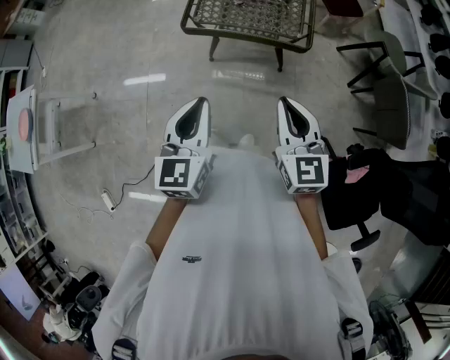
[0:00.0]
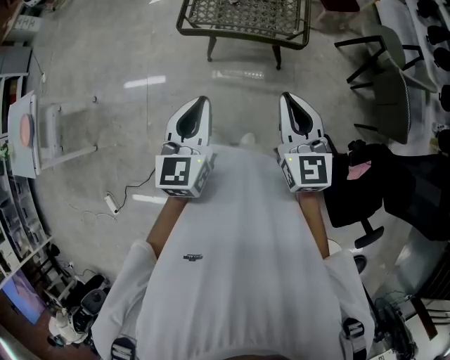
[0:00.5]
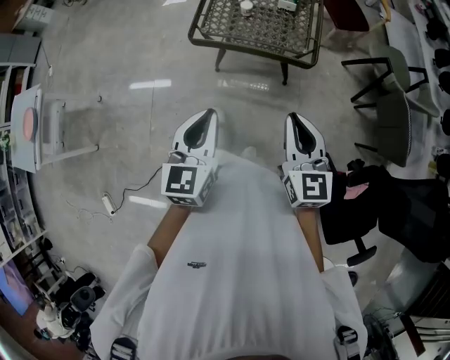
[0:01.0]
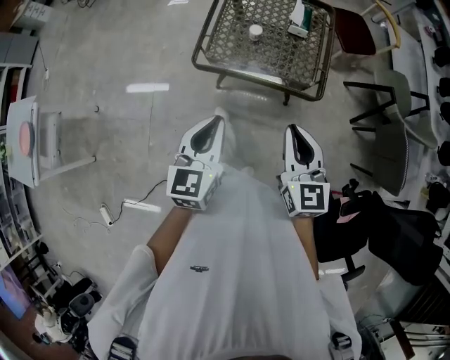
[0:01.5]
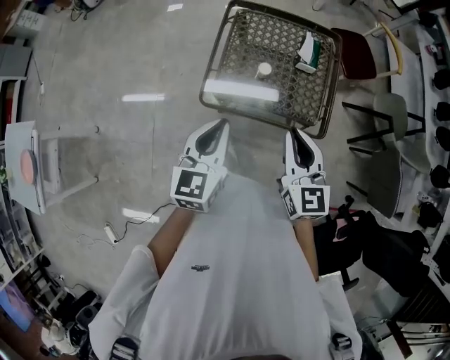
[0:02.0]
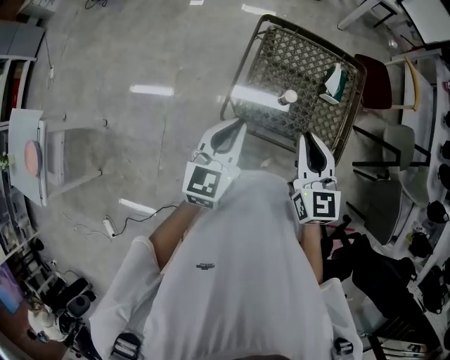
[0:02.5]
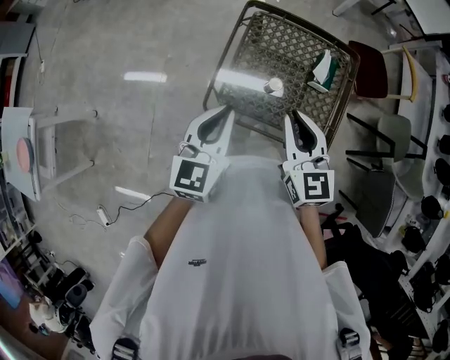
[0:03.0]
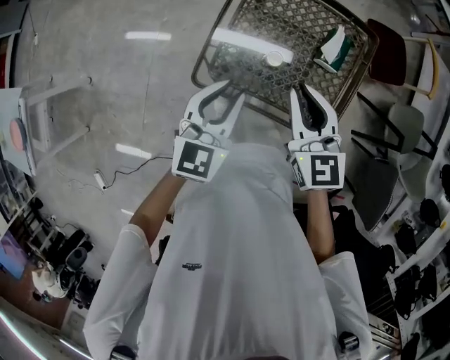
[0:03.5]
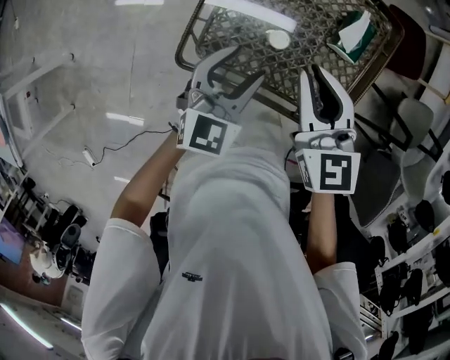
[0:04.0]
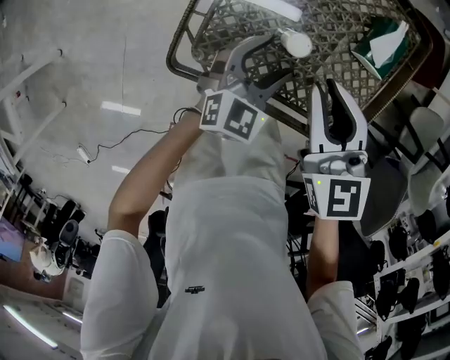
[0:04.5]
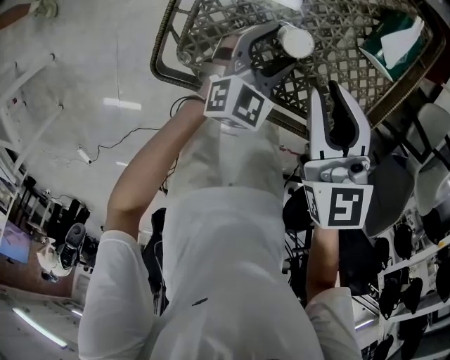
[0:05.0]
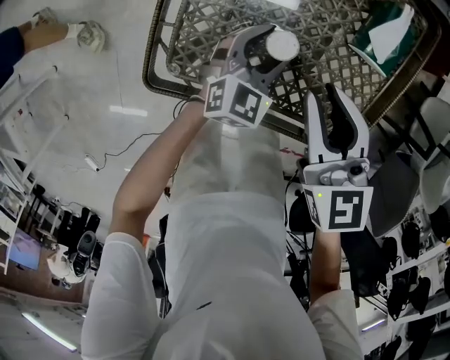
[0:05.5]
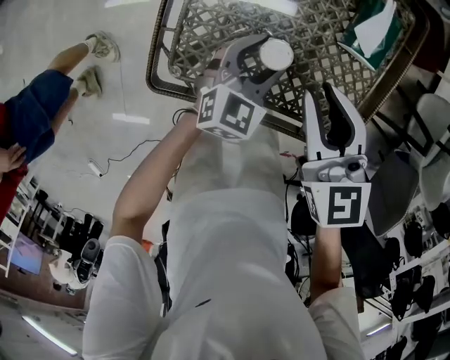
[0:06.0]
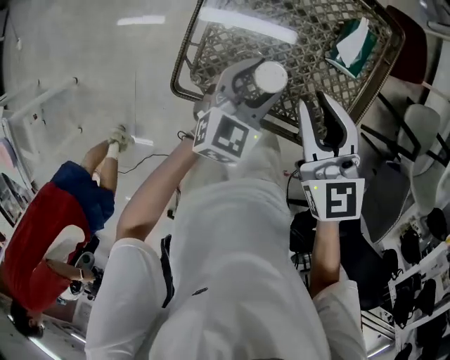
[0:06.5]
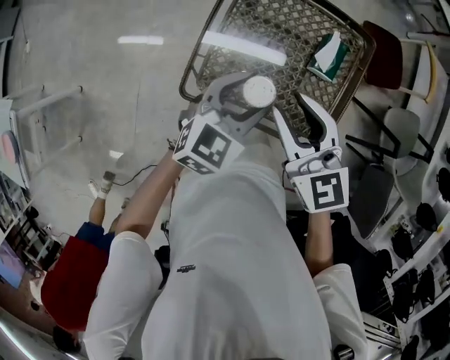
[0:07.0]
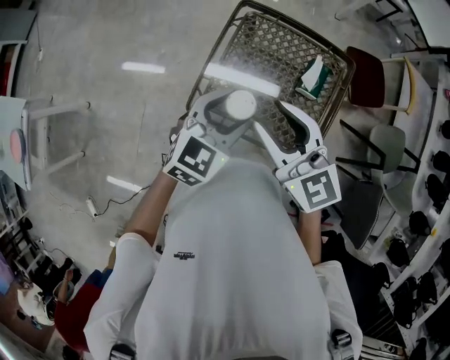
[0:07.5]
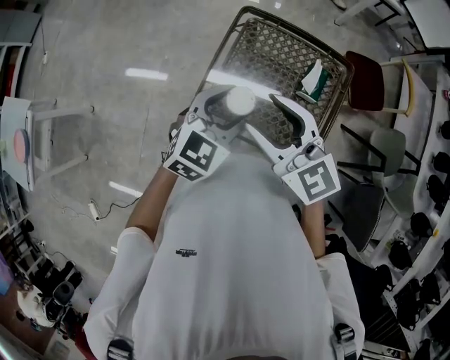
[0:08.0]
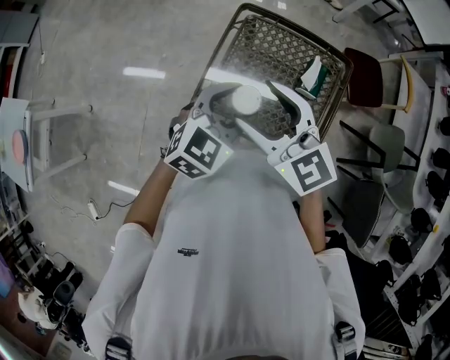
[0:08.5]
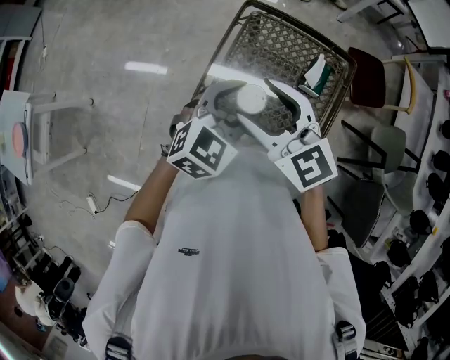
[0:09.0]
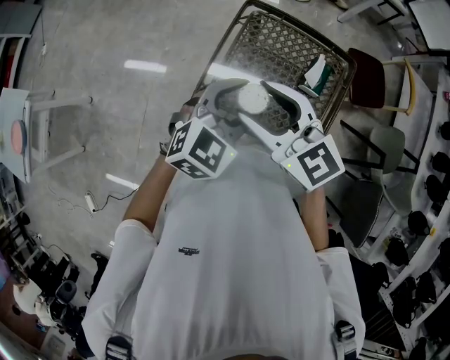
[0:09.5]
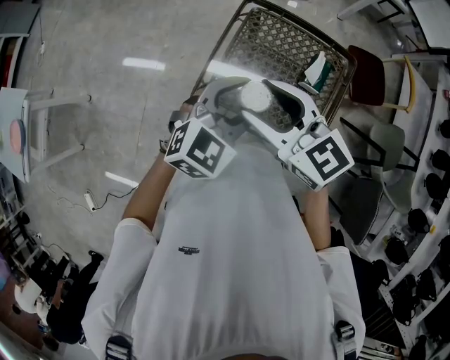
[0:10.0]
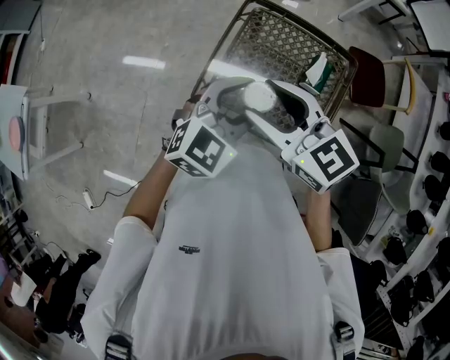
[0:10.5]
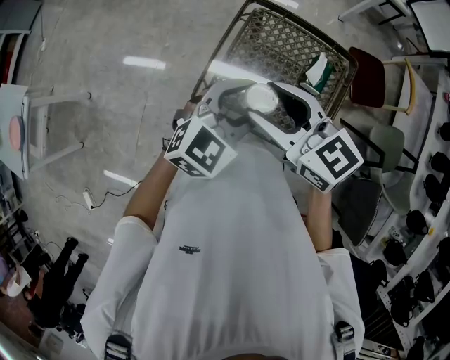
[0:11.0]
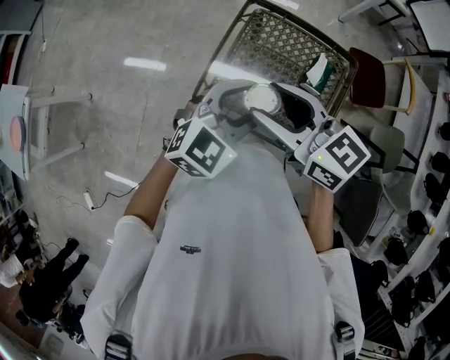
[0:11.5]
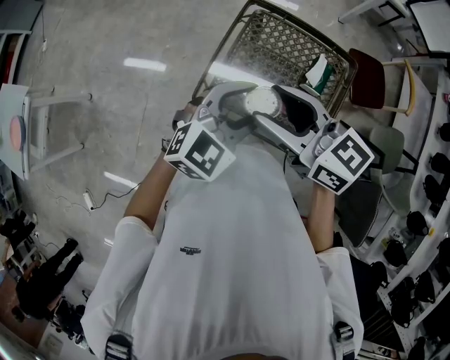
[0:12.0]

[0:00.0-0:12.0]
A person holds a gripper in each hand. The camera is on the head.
0:00.0 to 0:02.0: The grippers both shift forward by some 35 cm.
0:02.0 to 0:04.0: The right gripper travels forward and downward by approximately 25 cm. Meanwhile the left gripper shifts roughly 30 cm forward, downward and to the right, and opens.
0:04.0 to 0:06.0: The left gripper is displaced downward and to the right by about 20 cm. Meanwhile the right gripper heads downward, covering roughly 10 cm.
0:06.0 to 0:08.0: The two grippers go approximately 30 cm upward. The right gripper rotates about 30 degrees, and opens up.
0:08.0 to 0:10.0: The grippers move only a little.
0:10.0 to 0:12.0: The grippers move only a little.

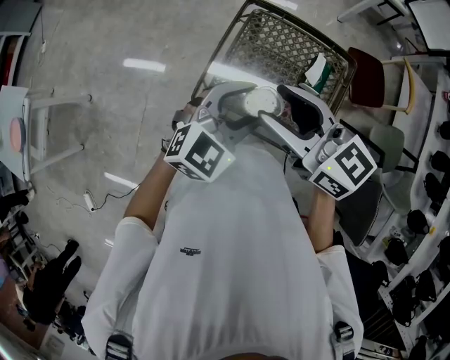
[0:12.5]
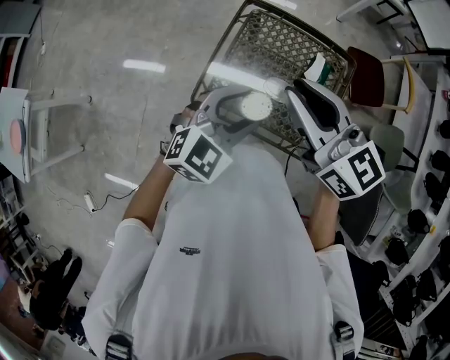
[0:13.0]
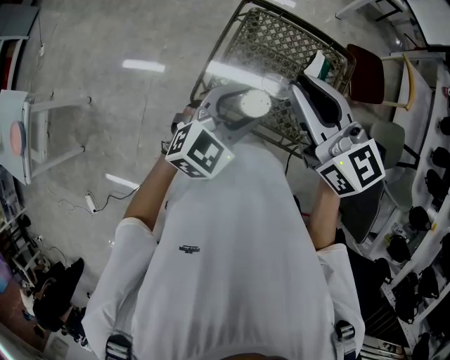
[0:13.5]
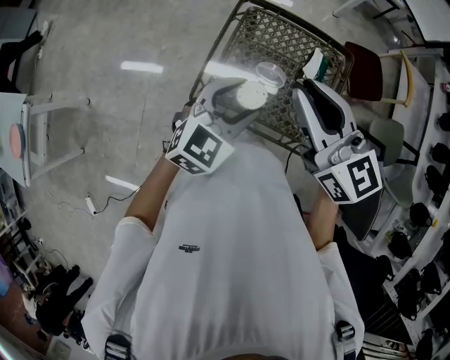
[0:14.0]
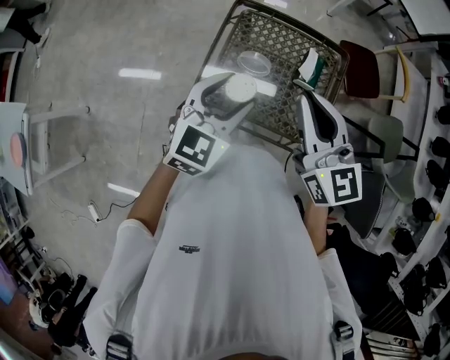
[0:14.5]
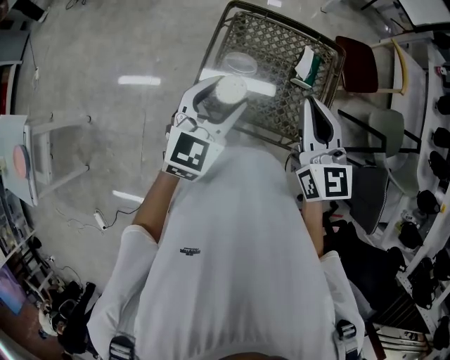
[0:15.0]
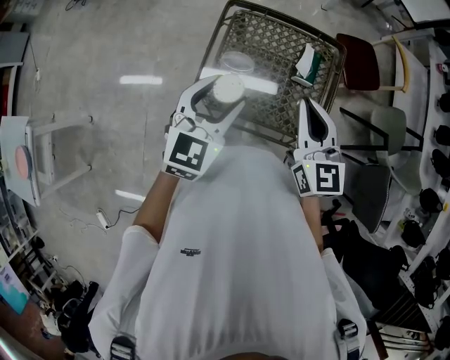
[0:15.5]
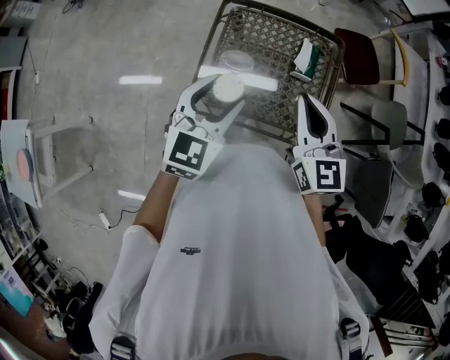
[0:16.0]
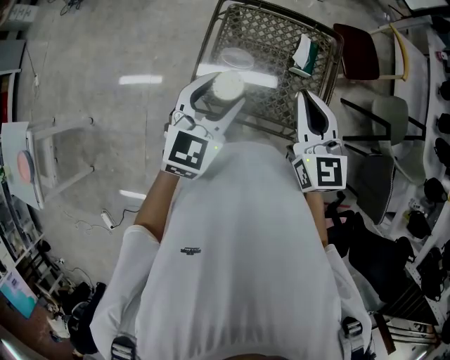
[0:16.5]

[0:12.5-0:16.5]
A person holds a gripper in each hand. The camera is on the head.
0:12.5 to 0:14.5: The right gripper moves to the right, roughly 10 cm, turns by roughly 30 degrees, and closes its fingers.
0:14.5 to 0:16.5: The right gripper is displaced downward by approximately 5 cm.

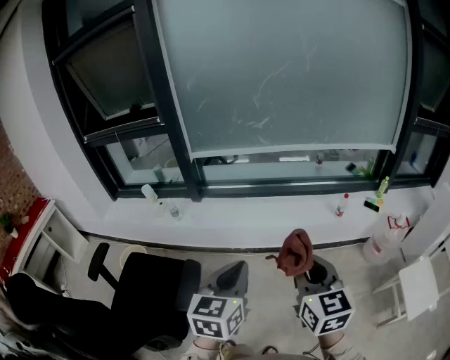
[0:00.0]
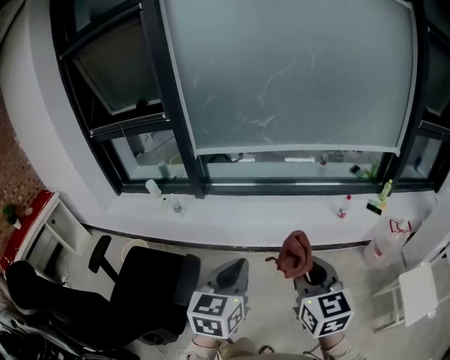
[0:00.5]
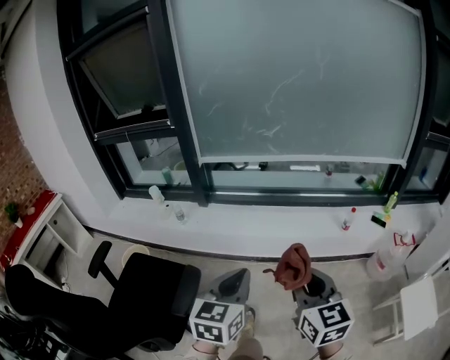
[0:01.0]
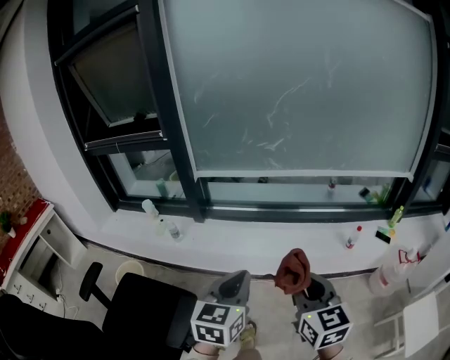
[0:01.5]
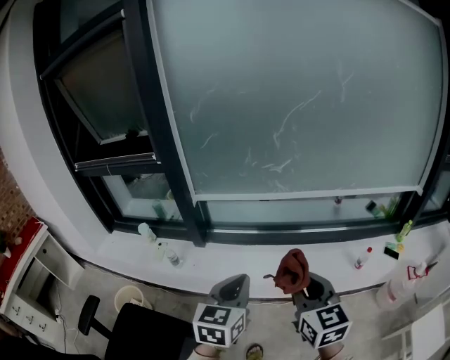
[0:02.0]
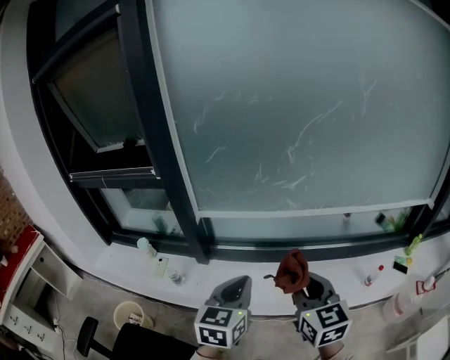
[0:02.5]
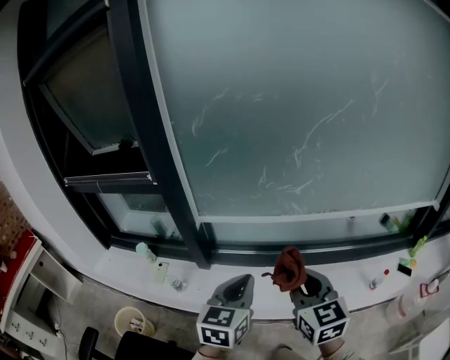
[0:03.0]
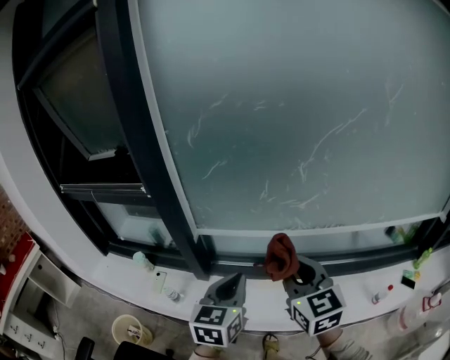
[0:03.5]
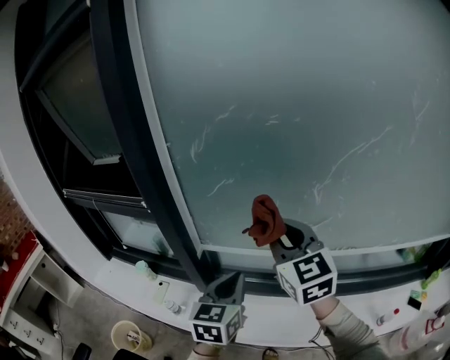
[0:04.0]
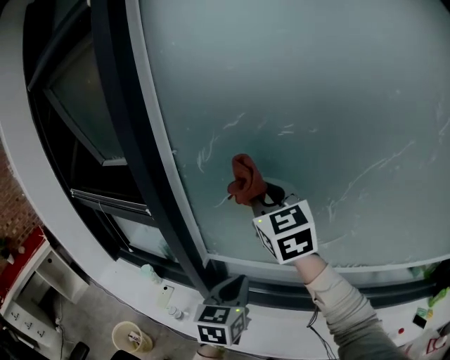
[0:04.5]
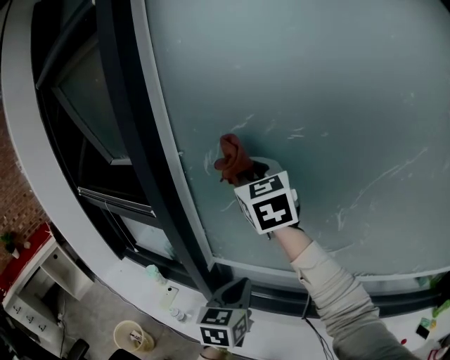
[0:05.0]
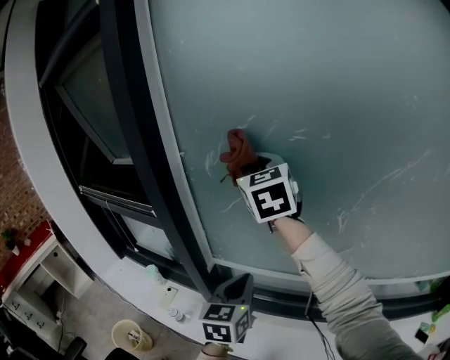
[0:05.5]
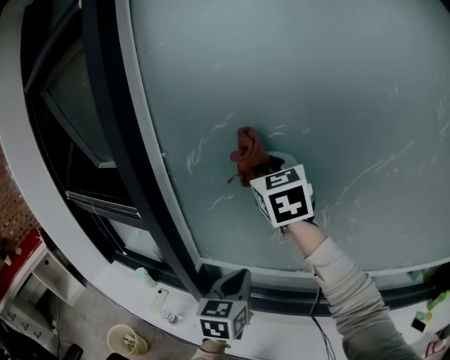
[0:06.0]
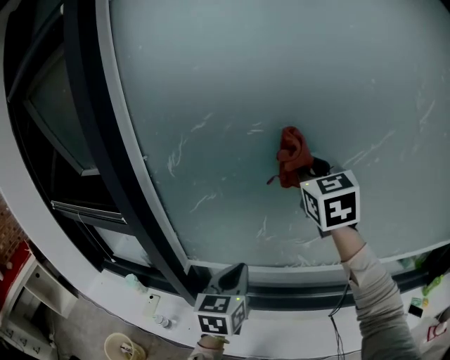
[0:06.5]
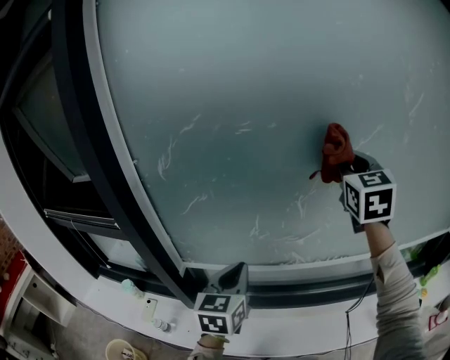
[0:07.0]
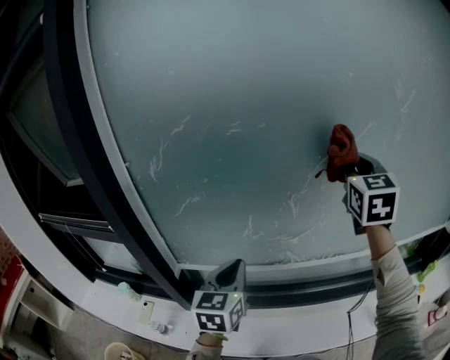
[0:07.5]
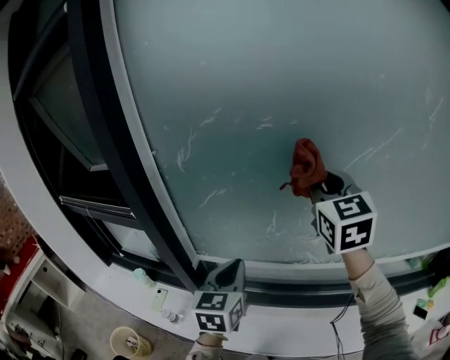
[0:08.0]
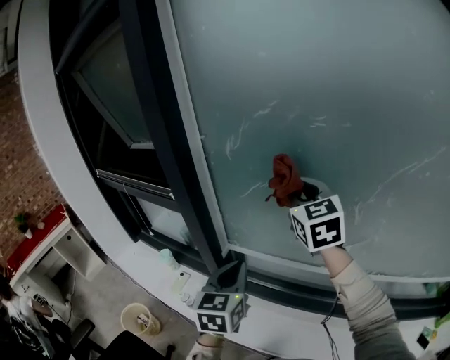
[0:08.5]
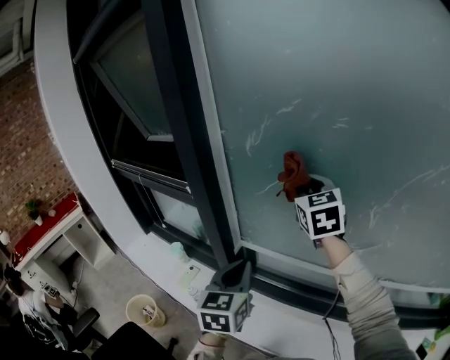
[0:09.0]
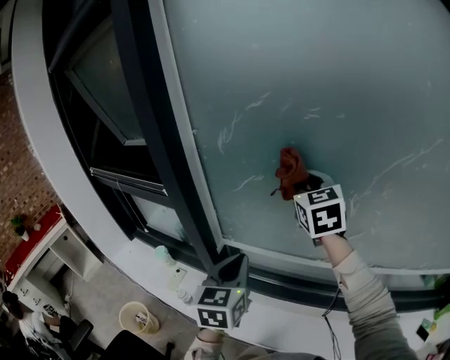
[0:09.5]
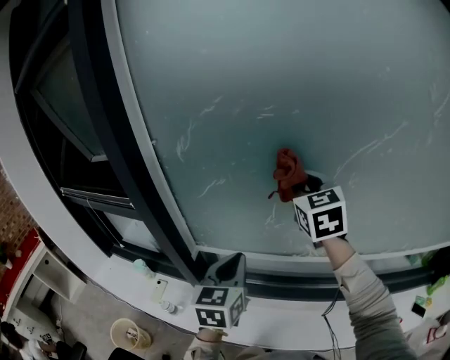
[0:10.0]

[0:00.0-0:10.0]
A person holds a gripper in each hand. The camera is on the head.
0:00.0 to 0:02.0: The grippers both shift forward by roughly 30 cm.
0:02.0 to 0:04.0: Both grippers move forward, about 40 cm. The right gripper rotates roughly 20 degrees.
0:04.0 to 0:06.0: The right gripper travels forward and upward by about 20 cm, while the left gripper moves forward, some 10 cm.
0:06.0 to 0:08.0: The right gripper moves to the right, about 15 cm.
0:08.0 to 0:10.0: The left gripper moves some 10 cm to the left and comes back, while the right gripper goes about 5 cm downward, and moves roughly 15 cm to the left and comes back.

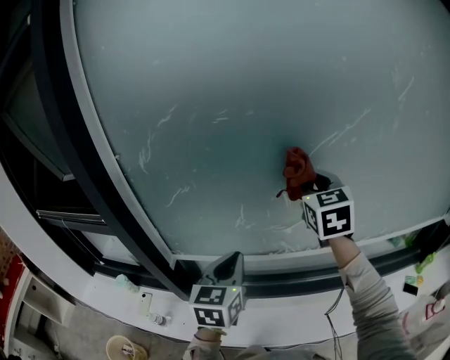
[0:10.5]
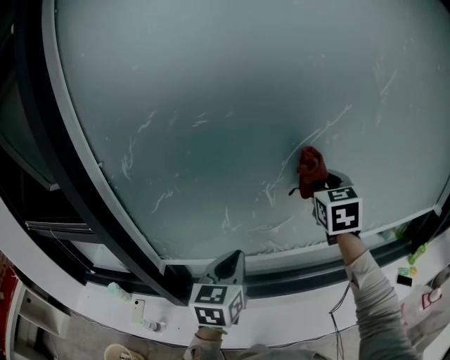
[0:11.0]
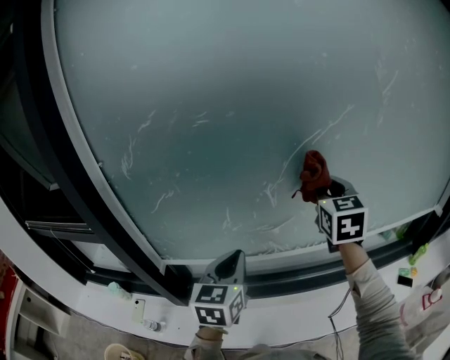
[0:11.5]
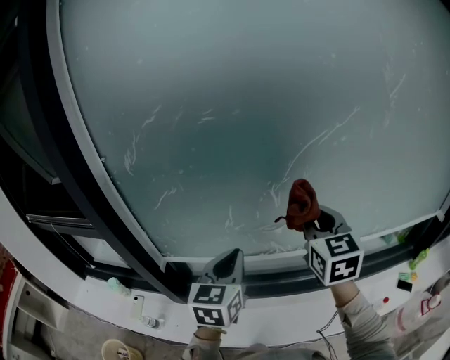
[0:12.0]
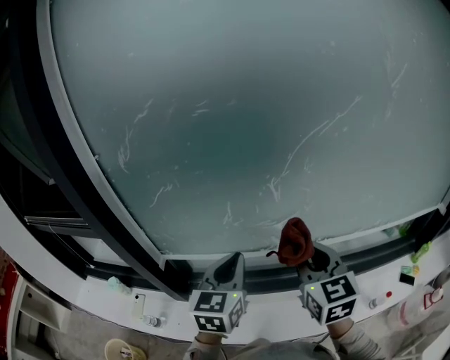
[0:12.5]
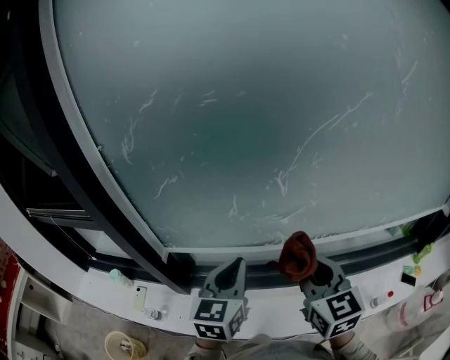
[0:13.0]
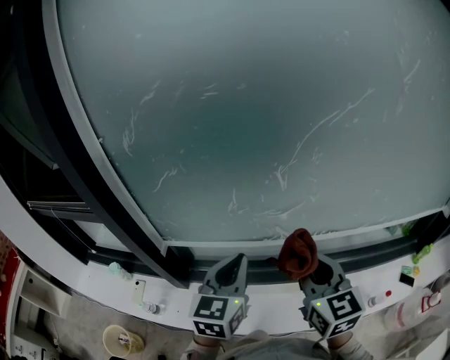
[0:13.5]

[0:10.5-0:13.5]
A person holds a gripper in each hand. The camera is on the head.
0:10.5 to 0:12.0: The right gripper travels backward and downward by about 10 cm.
0:12.0 to 0:13.5: The right gripper moves backward and downward, roughly 15 cm.
